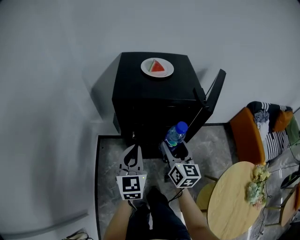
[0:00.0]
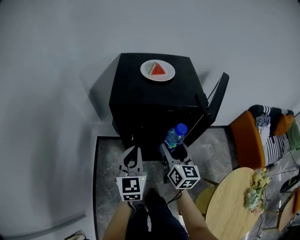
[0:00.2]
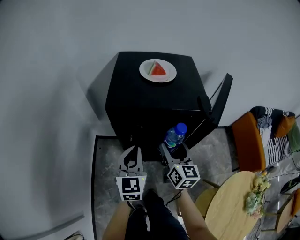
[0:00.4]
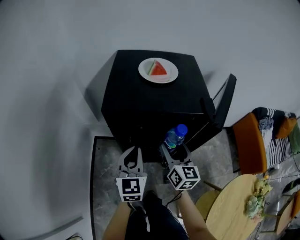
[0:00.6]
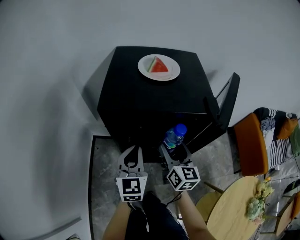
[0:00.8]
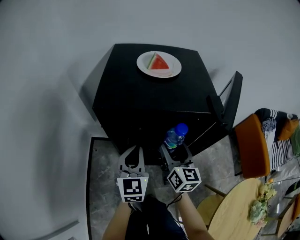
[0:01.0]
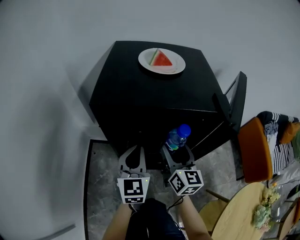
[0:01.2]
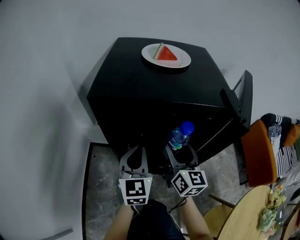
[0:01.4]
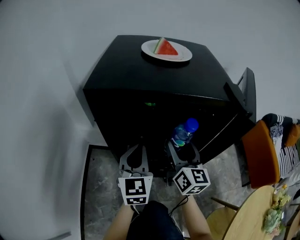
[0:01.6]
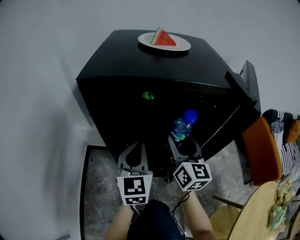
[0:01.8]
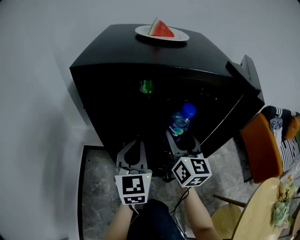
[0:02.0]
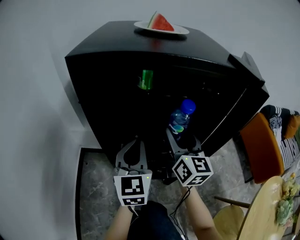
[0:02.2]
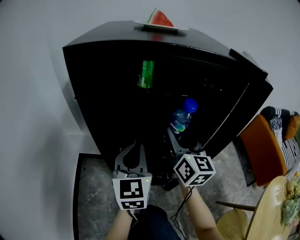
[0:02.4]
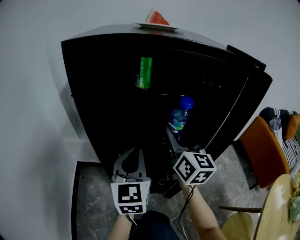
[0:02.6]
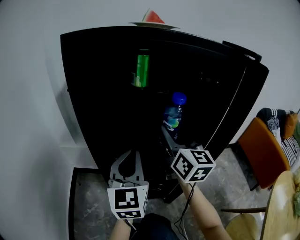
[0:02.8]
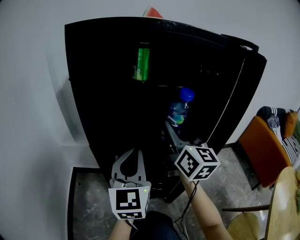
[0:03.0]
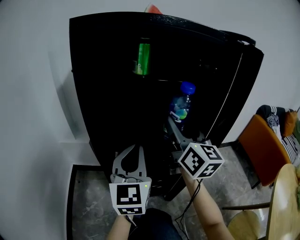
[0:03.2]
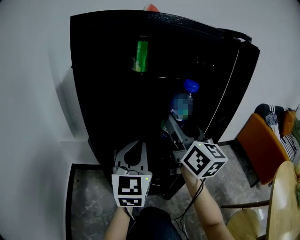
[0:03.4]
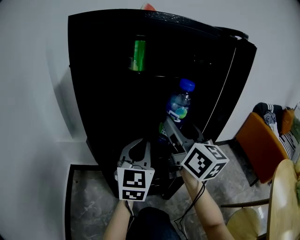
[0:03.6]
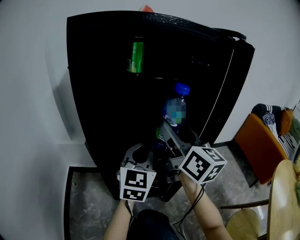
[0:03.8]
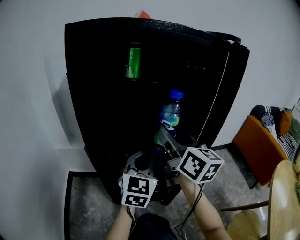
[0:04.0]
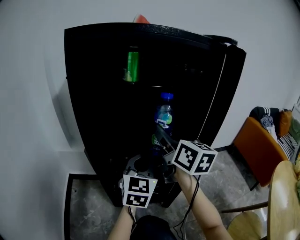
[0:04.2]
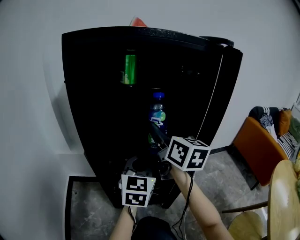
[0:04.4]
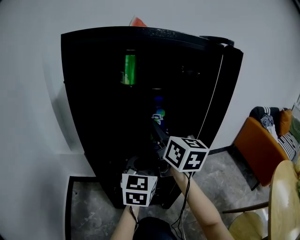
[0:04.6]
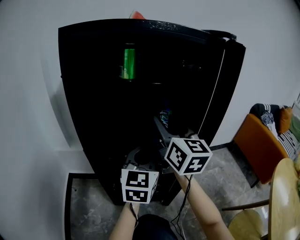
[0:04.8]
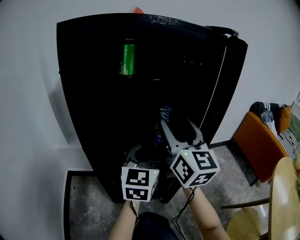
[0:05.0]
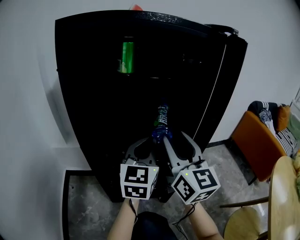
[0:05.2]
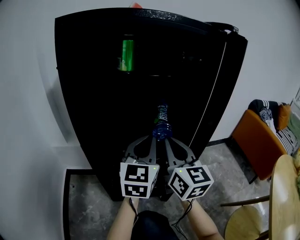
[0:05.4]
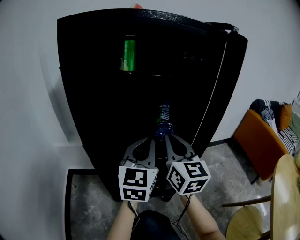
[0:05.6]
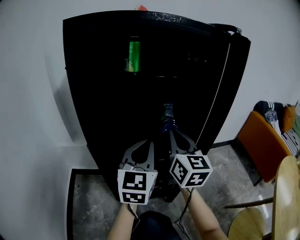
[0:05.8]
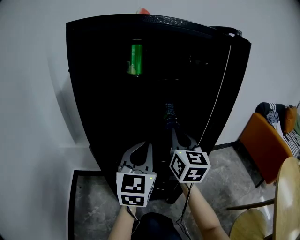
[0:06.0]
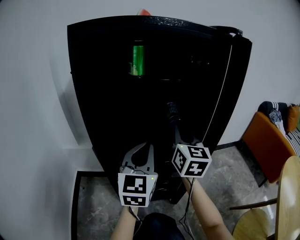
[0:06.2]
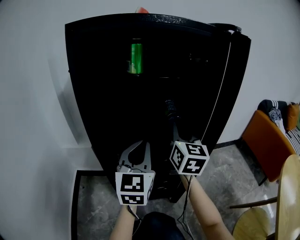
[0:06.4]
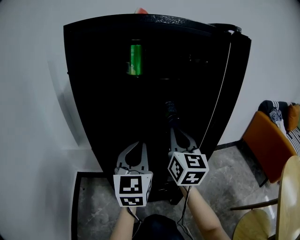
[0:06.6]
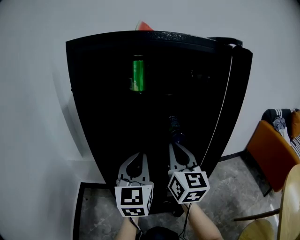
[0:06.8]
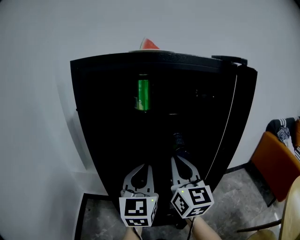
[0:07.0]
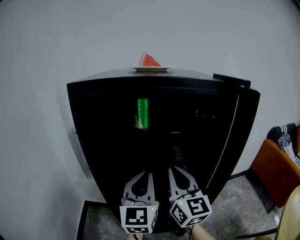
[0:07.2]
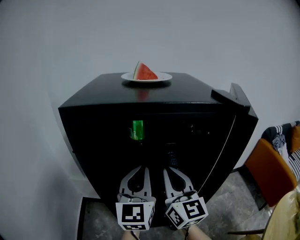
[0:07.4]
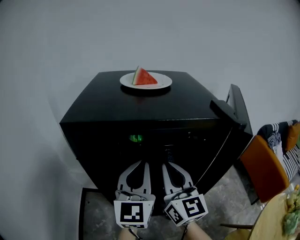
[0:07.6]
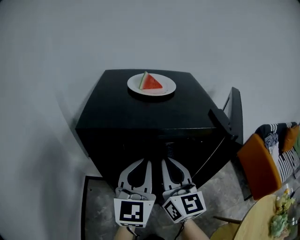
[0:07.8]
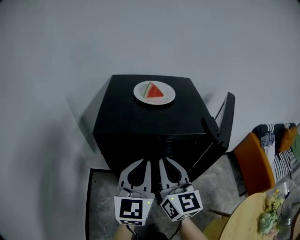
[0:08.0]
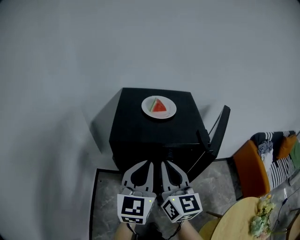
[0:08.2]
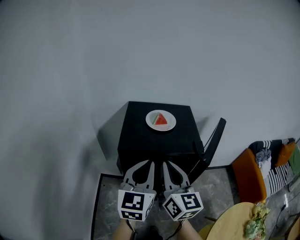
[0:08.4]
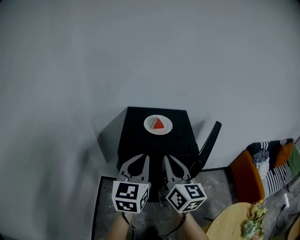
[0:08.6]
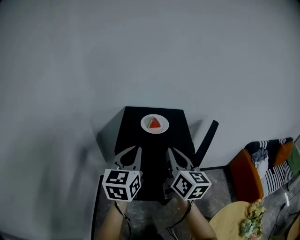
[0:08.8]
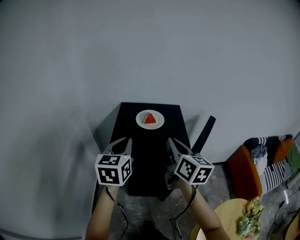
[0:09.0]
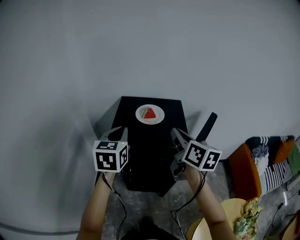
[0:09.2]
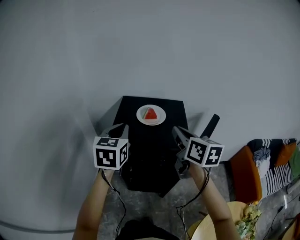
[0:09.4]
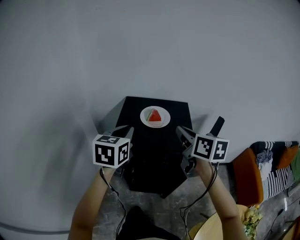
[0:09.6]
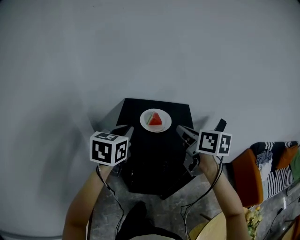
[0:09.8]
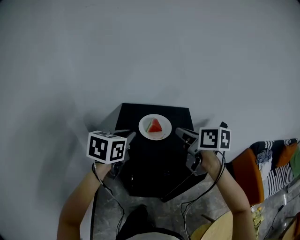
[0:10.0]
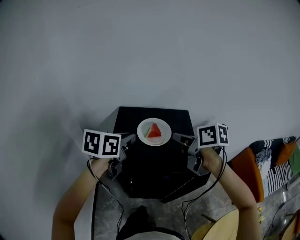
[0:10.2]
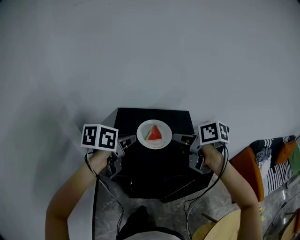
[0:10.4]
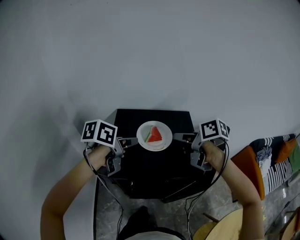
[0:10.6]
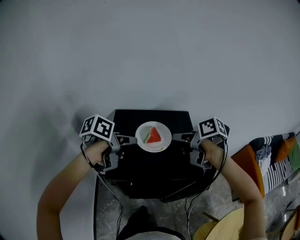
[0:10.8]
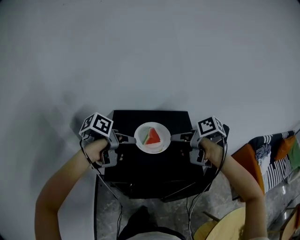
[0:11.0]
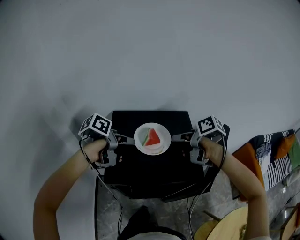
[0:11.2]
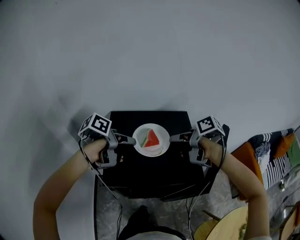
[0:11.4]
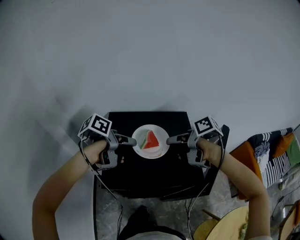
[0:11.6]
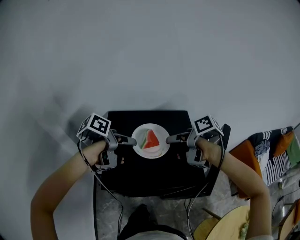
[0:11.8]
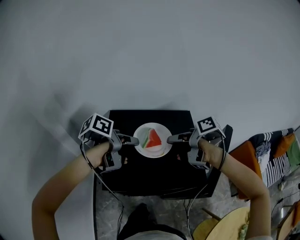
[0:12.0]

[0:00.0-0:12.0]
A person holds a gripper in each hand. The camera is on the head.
0:00.0 to 0:01.6: The left gripper travels downward and forward by about 20 cm. Meanwhile the right gripper heads forward and downward, covering about 20 cm.
0:01.6 to 0:03.0: The left gripper travels downward by about 10 cm, while the right gripper changes place by about 5 cm.
0:03.0 to 0:04.4: The left gripper travels to the right and downward by roughly 10 cm.
0:04.4 to 0:06.0: The left gripper moves about 5 cm, while the right gripper closes up.
0:06.0 to 0:07.6: Both grippers move upward, roughly 15 cm.
0:07.6 to 0:09.0: The two grippers go some 25 cm upward. The left gripper rotates about 30 degrees. Meanwhile the right gripper rotates about 30 degrees.
0:09.0 to 0:10.4: The two grippers go approximately 15 cm forward. The right gripper turns by approximately 40 degrees. The left gripper swivels some 40 degrees.
0:10.4 to 0:12.0: The left gripper swivels roughly 40 degrees. The right gripper rotates about 30 degrees.

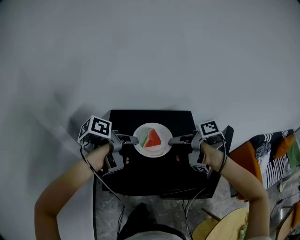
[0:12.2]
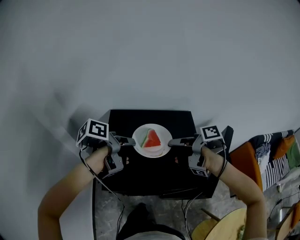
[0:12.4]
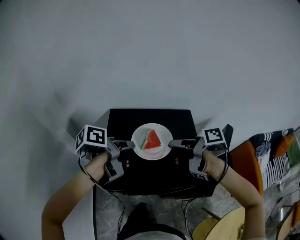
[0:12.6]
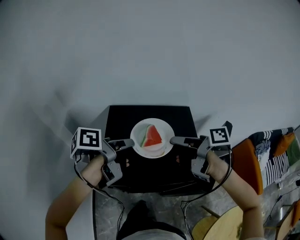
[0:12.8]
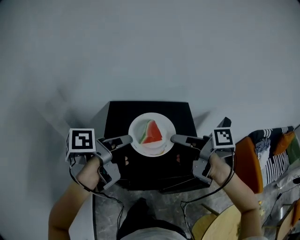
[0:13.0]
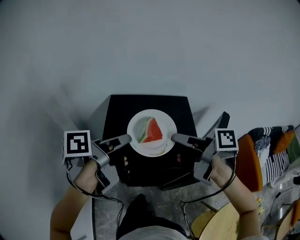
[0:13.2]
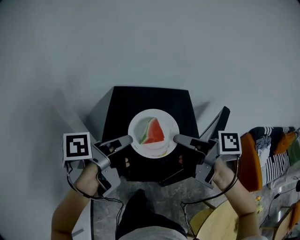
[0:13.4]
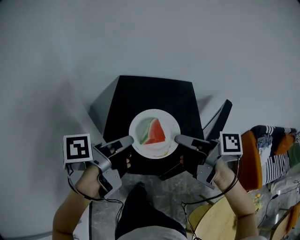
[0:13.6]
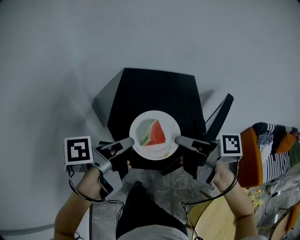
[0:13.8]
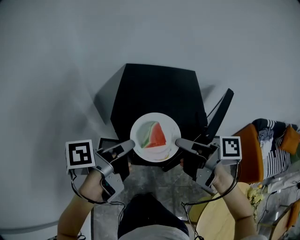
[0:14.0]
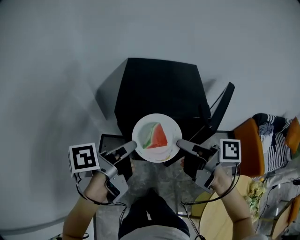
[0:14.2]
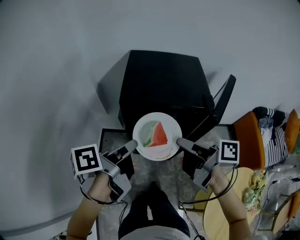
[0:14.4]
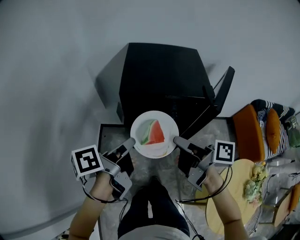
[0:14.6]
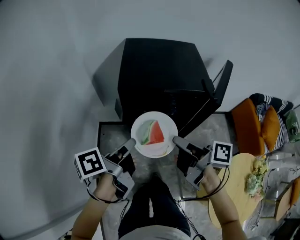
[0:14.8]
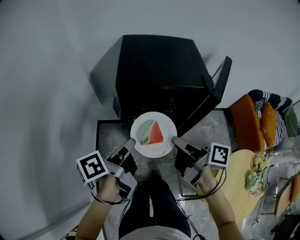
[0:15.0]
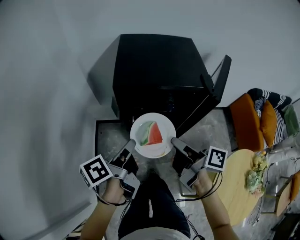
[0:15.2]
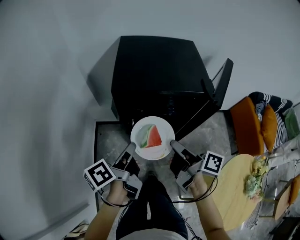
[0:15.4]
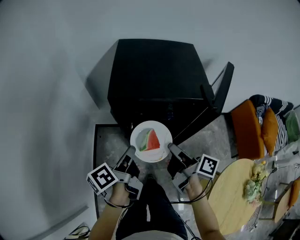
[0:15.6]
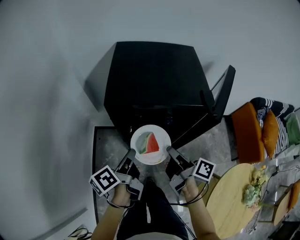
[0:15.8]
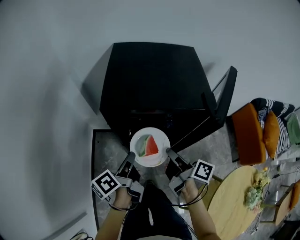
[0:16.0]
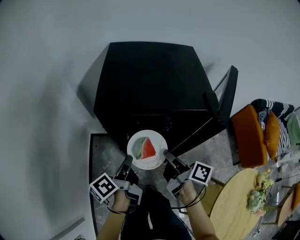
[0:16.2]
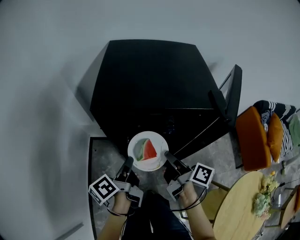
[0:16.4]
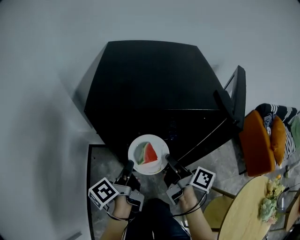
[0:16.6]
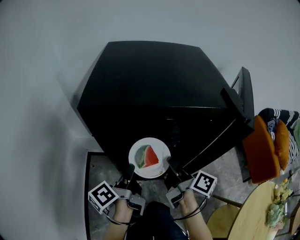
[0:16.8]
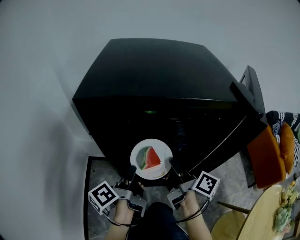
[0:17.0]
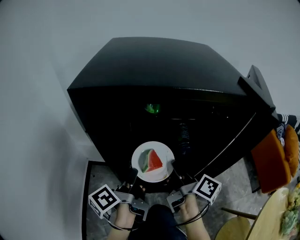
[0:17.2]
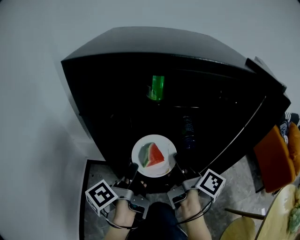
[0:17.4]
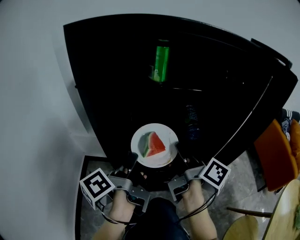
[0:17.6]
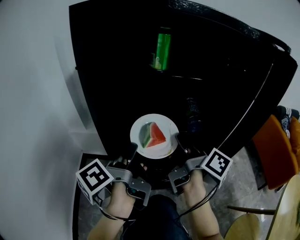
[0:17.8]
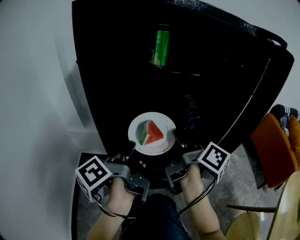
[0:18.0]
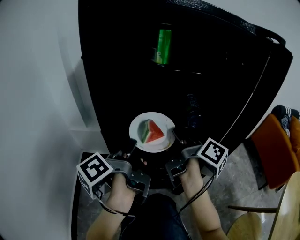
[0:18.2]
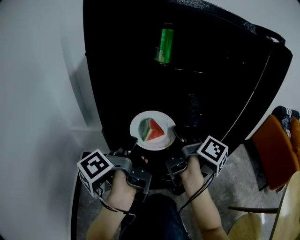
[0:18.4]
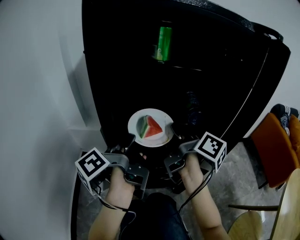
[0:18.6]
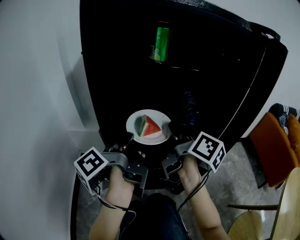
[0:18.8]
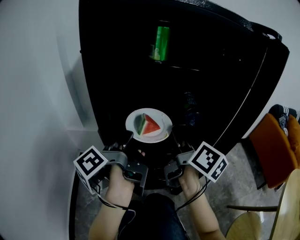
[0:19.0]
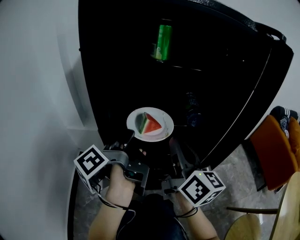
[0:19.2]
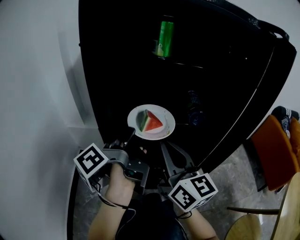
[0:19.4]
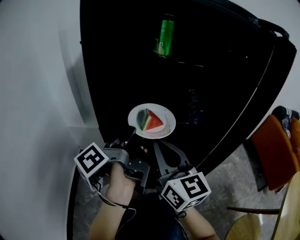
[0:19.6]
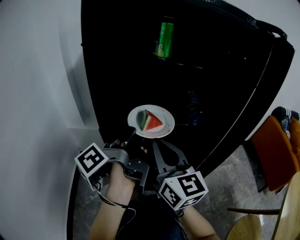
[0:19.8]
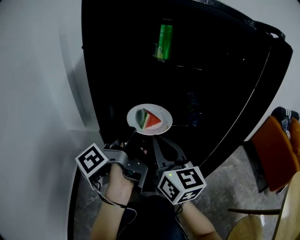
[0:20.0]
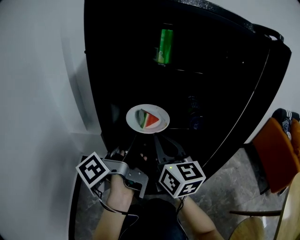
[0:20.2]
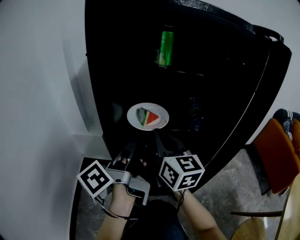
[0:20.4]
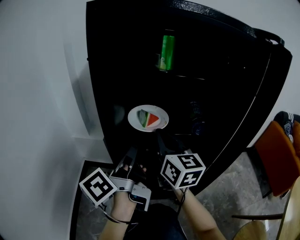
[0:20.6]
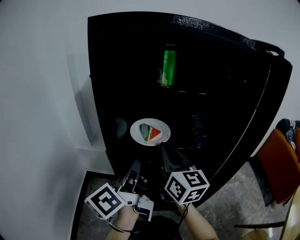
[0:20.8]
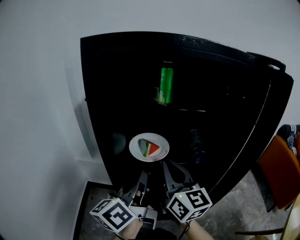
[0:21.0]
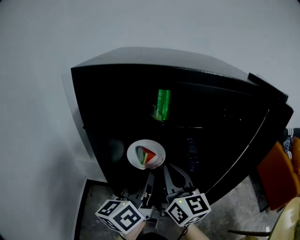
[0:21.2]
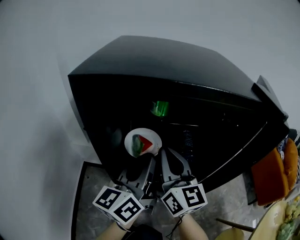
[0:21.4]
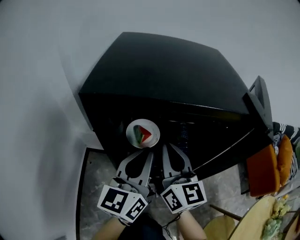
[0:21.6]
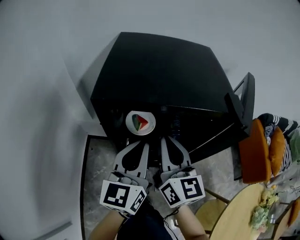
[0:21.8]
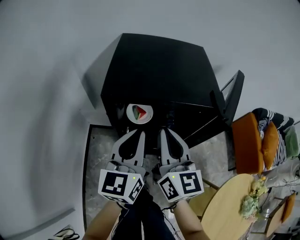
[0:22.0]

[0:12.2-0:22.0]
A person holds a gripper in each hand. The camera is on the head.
0:12.2 to 0:13.6: The grippers move only a little.
0:13.6 to 0:15.0: The grippers move only a little.
0:15.0 to 0:16.4: Both grippers travel together downward, about 15 cm.
0:16.4 to 0:17.8: Both grippers travel together downward, about 20 cm.
0:17.8 to 0:19.2: The right gripper ends up approximately 5 cm from where it was, and twists approximately 40 degrees counterclockwise, seen from behind.
0:19.2 to 0:20.6: The left gripper changes its angle by about 20 degrees. The right gripper shifts about 10 cm forward and to the left.
0:20.6 to 0:22.0: The grippers both shift upward by some 35 cm. The left gripper rolls clockwise, seen from behind, by approximately 60 degrees.

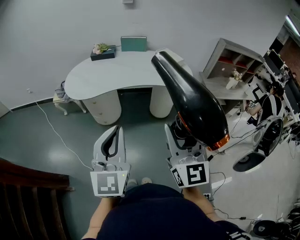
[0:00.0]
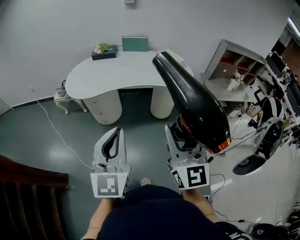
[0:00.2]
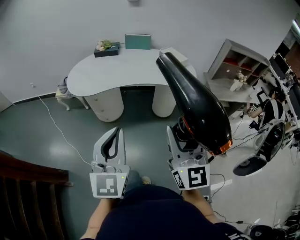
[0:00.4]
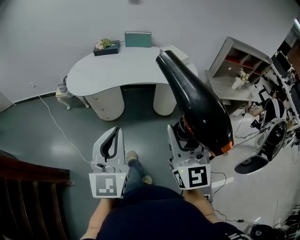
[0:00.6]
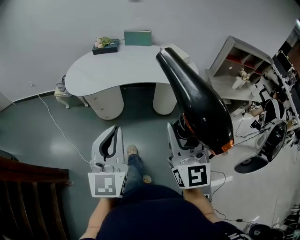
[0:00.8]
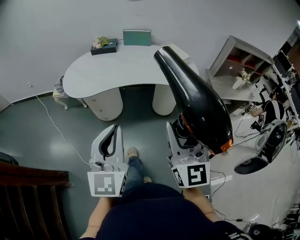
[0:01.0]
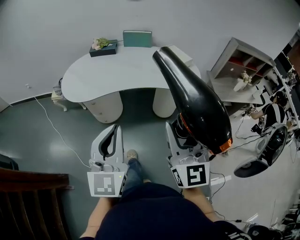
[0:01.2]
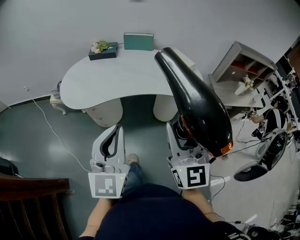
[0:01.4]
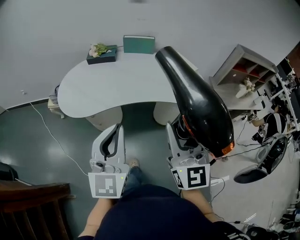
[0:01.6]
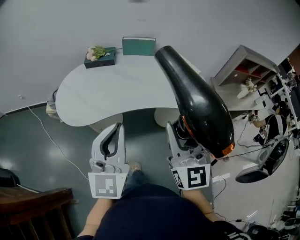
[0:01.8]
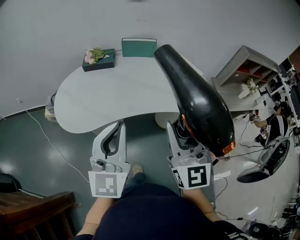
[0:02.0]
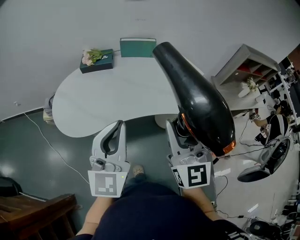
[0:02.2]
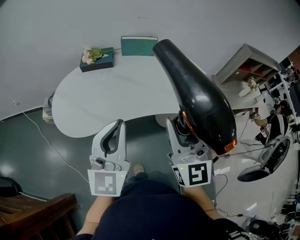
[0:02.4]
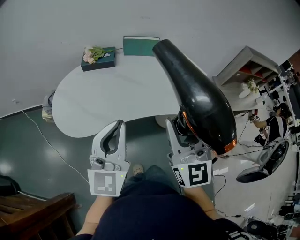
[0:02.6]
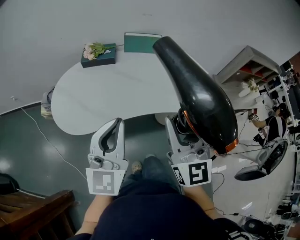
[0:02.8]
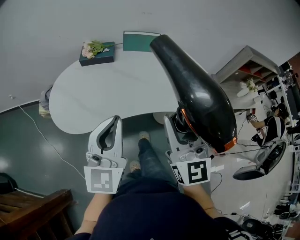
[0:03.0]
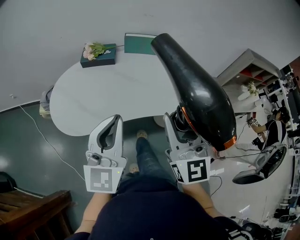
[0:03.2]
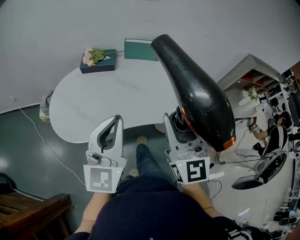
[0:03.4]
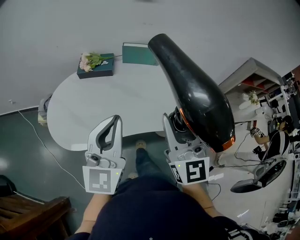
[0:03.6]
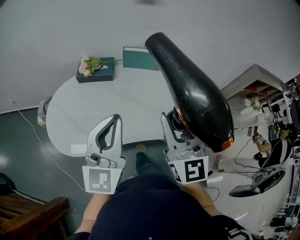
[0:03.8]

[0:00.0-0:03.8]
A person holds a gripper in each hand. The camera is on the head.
0:00.0 to 0:01.2: Both grippers move forward, approximately 10 cm.
0:01.2 to 0:02.6: The grippers both shift forward by roughly 25 cm.
0:02.6 to 0:03.8: The two grippers go roughly 15 cm forward.
